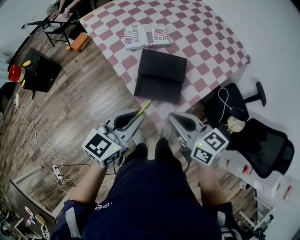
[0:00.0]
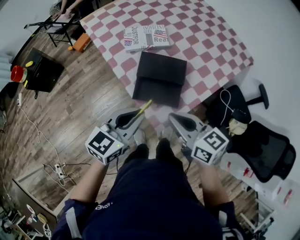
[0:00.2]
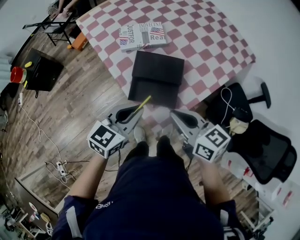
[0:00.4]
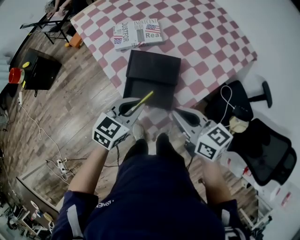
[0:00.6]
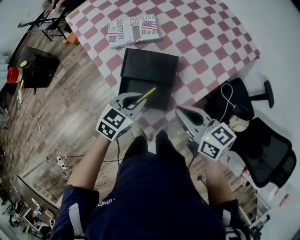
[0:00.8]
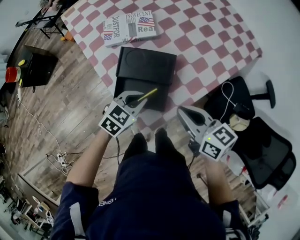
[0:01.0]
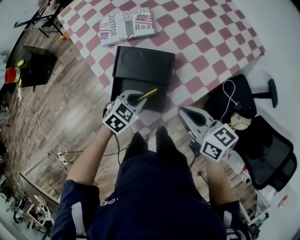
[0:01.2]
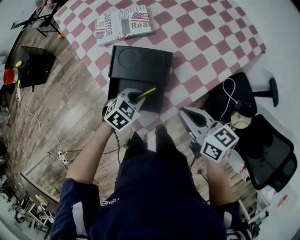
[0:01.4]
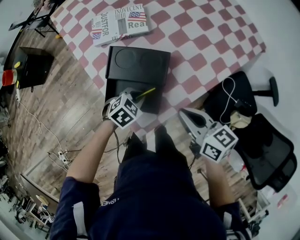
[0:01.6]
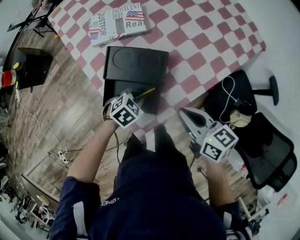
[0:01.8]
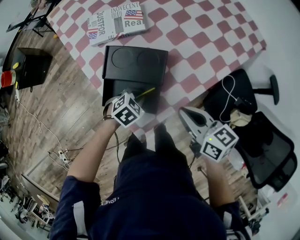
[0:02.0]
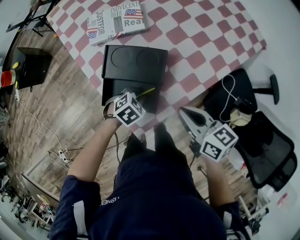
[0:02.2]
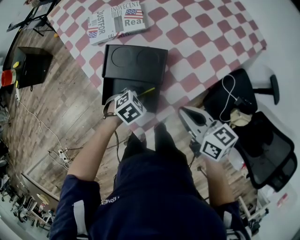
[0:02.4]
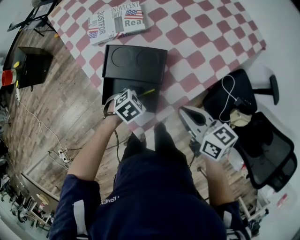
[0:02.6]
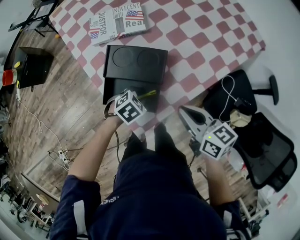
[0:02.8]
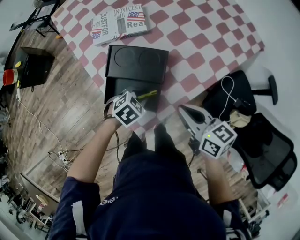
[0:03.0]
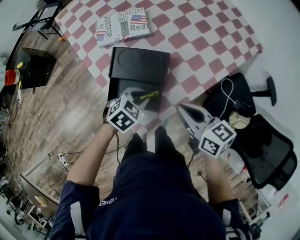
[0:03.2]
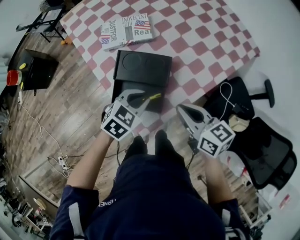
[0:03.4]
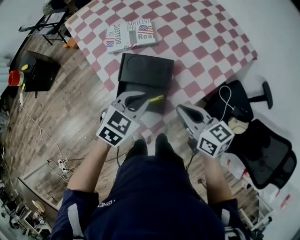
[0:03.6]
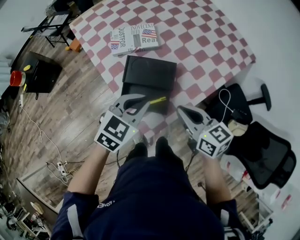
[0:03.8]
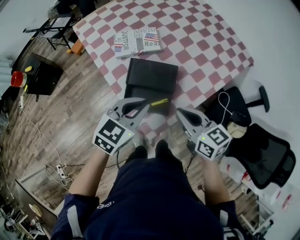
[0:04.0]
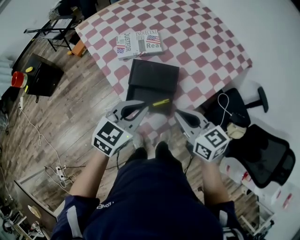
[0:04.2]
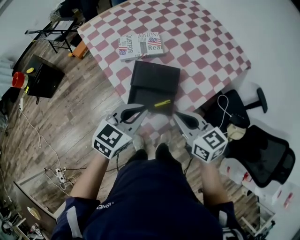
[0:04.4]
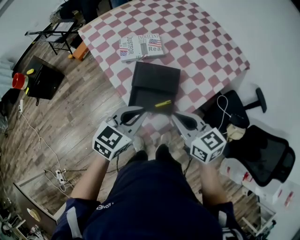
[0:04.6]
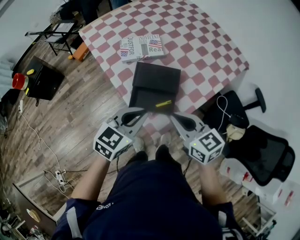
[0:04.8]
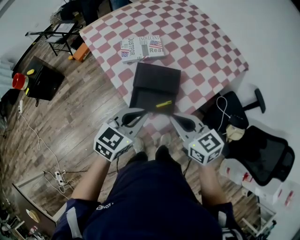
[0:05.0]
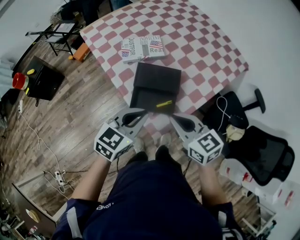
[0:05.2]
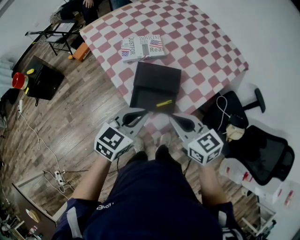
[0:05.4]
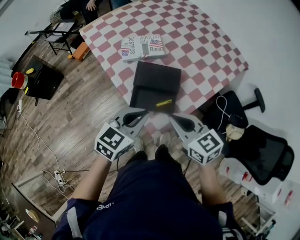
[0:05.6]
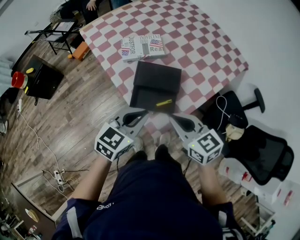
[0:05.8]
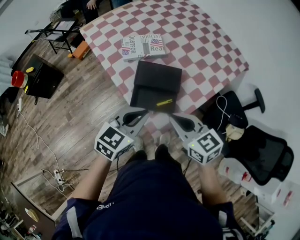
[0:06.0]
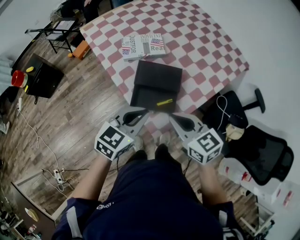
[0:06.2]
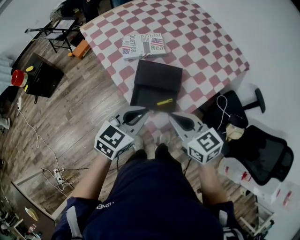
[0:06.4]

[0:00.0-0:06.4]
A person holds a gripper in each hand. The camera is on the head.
0:00.0 to 0:01.6: The right gripper travels to the right, downward and forward by roughly 20 cm. Meanwhile the left gripper heads downward, to the right and forward, covering approximately 30 cm, and tilts its fingers some 50 degrees downward.
0:01.6 to 0:03.2: The left gripper shifts some 5 cm upward.
0:03.2 to 0:04.8: The right gripper travels to the left, upward and backward by about 15 cm, and swivels approximately 20 degrees. The left gripper shifts some 20 cm upward and to the left, and angles its fingers upward, by some 30 degrees.
0:04.8 to 0:06.4: The grippers move only a little.

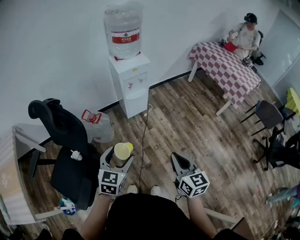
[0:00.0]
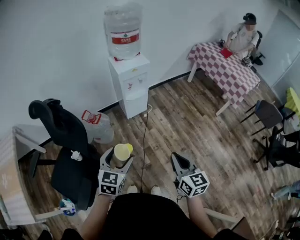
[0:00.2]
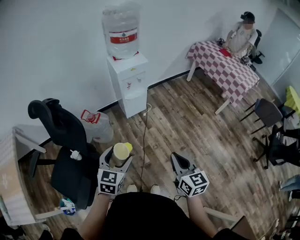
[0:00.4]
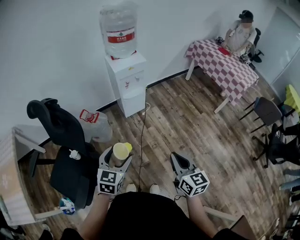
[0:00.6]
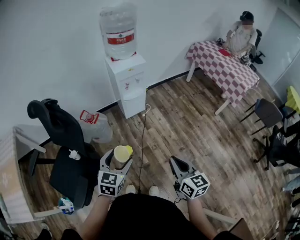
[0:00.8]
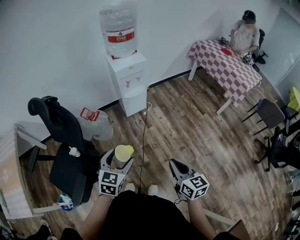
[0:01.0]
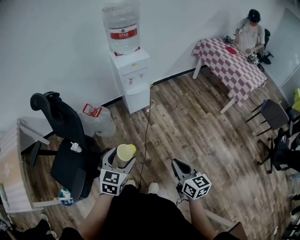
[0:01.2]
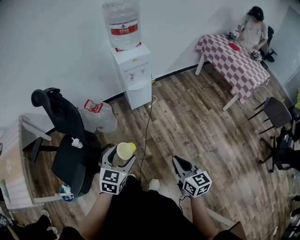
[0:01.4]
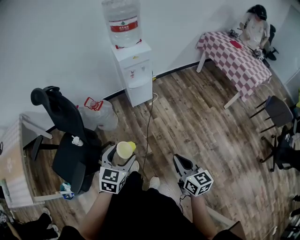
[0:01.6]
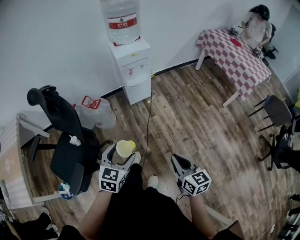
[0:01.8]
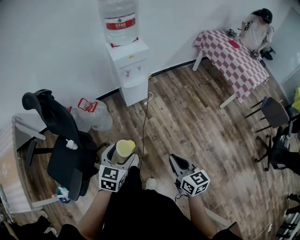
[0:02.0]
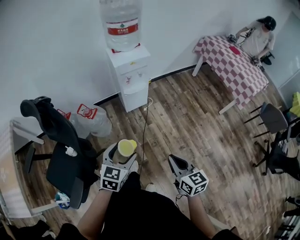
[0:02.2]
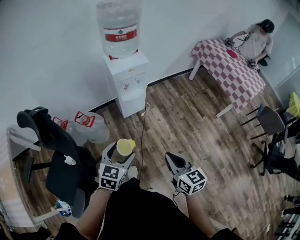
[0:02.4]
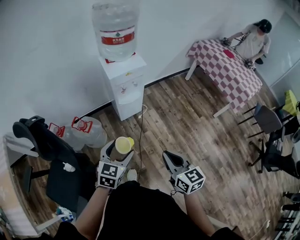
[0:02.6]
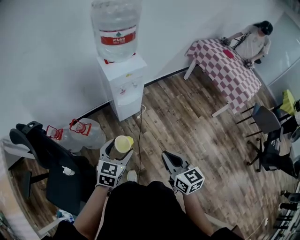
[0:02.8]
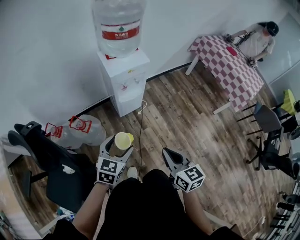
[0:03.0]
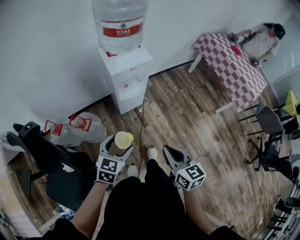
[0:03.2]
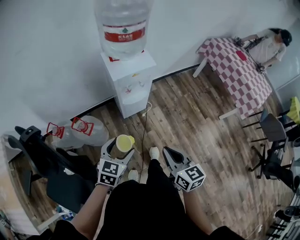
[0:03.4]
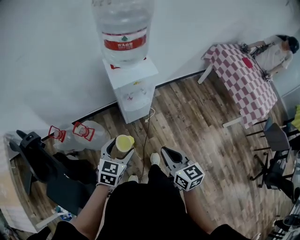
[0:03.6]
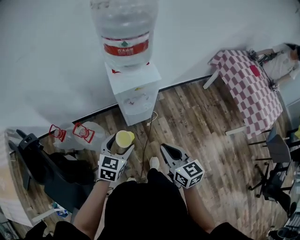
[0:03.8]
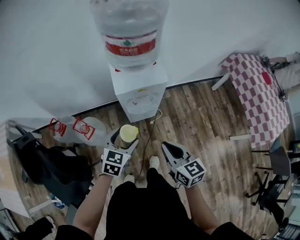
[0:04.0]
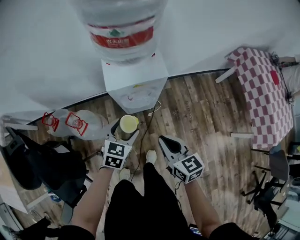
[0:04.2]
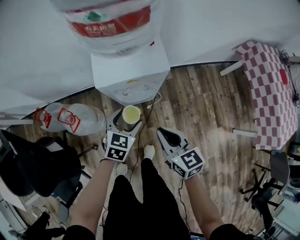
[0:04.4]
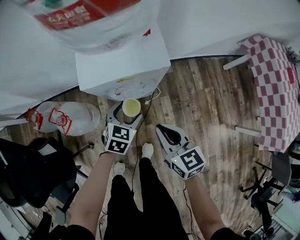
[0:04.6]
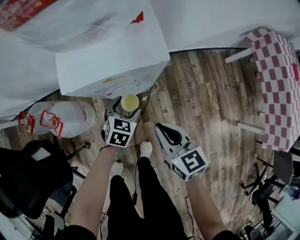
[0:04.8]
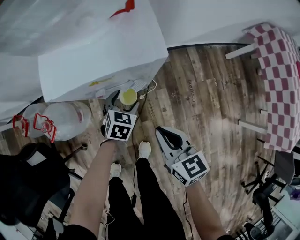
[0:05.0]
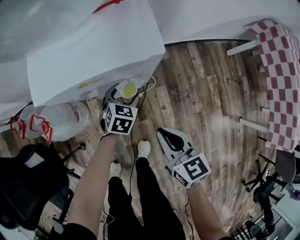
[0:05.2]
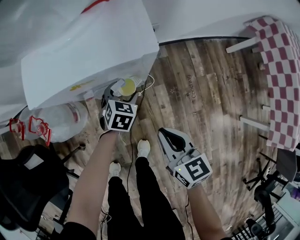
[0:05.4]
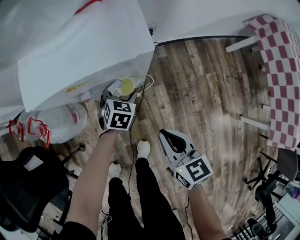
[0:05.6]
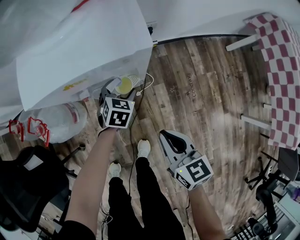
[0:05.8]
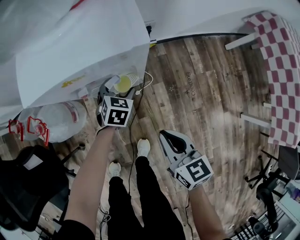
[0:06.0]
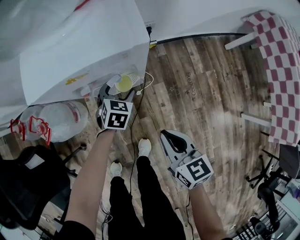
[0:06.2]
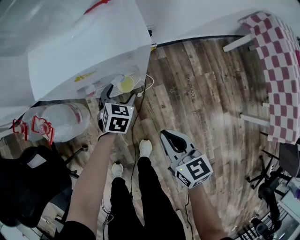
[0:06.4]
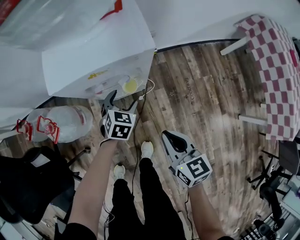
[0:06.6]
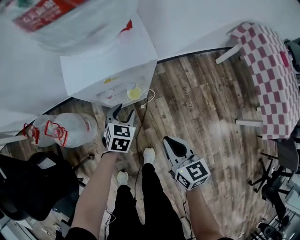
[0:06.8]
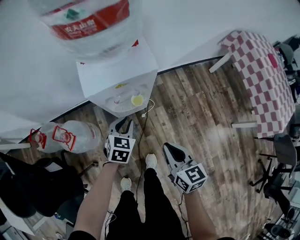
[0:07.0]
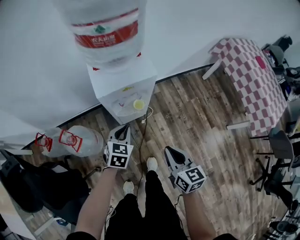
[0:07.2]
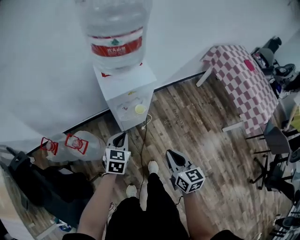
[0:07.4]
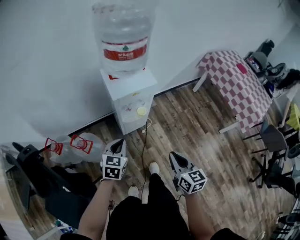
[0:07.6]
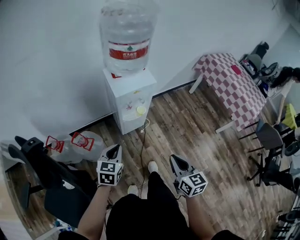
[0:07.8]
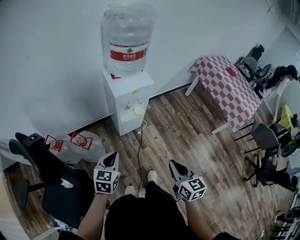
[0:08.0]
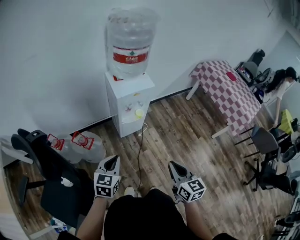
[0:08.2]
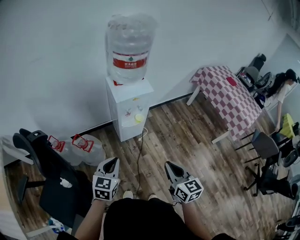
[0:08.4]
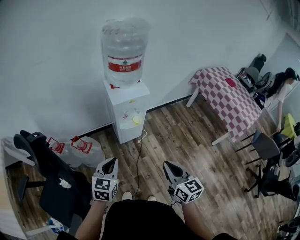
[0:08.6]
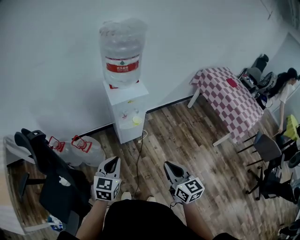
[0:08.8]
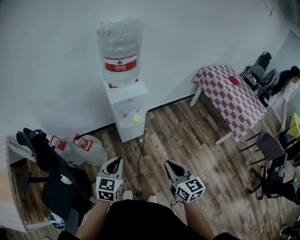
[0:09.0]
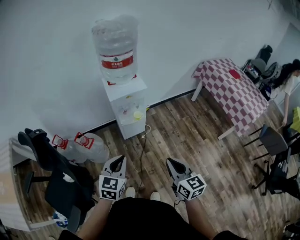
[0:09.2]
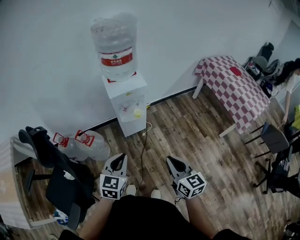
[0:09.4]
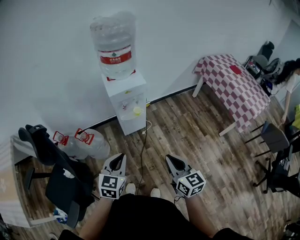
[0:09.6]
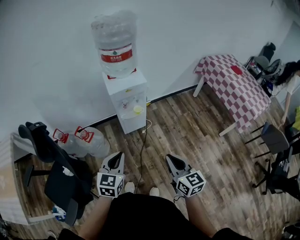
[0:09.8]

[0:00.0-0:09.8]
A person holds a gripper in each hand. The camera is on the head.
0:00.0 to 0:01.4: The right gripper shifts some 10 cm to the right, backward and downward, while the left gripper is displaced to the right and backward by roughly 10 cm.
0:01.4 to 0:02.8: Both grippers travel together forward, approximately 25 cm.
0:02.8 to 0:04.2: The two grippers go some 30 cm forward. The right gripper changes its angle by about 20 degrees.
0:04.2 to 0:05.6: The right gripper is displaced downward by approximately 25 cm. Meanwhile the left gripper moves downward and forward, about 35 cm.
0:05.6 to 0:07.0: The two grippers go about 20 cm upward and backward. The left gripper closes.
0:07.0 to 0:08.4: The left gripper moves backward, upward and to the left, approximately 40 cm, while the right gripper goes about 30 cm backward and upward.
0:08.4 to 0:09.8: Both grippers move to the right, approximately 10 cm.

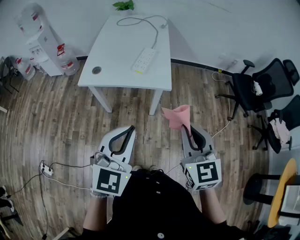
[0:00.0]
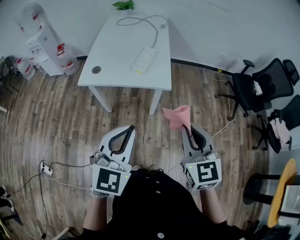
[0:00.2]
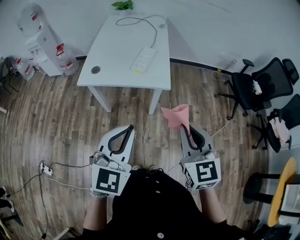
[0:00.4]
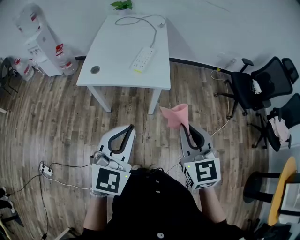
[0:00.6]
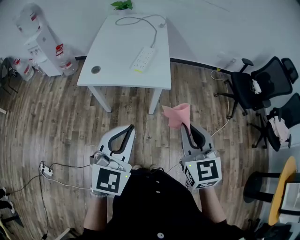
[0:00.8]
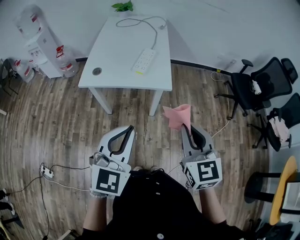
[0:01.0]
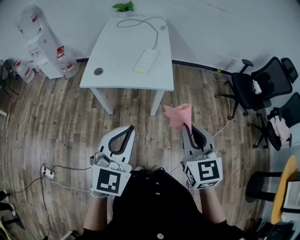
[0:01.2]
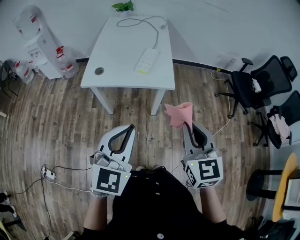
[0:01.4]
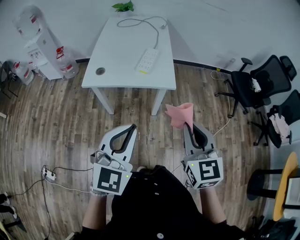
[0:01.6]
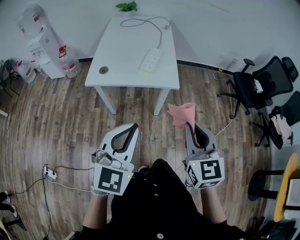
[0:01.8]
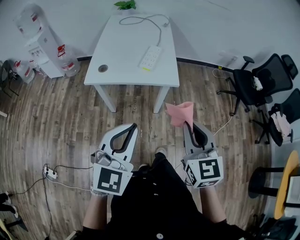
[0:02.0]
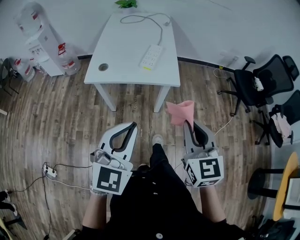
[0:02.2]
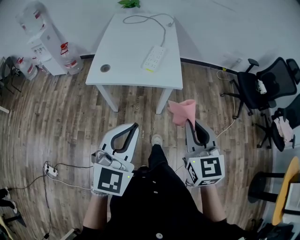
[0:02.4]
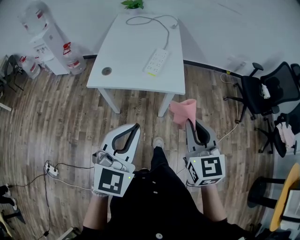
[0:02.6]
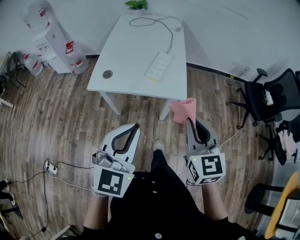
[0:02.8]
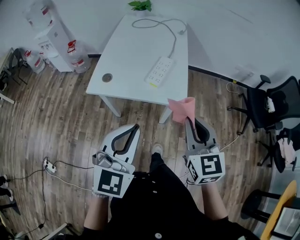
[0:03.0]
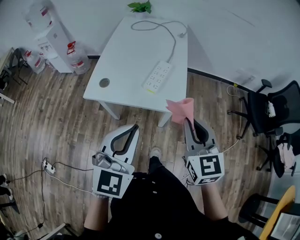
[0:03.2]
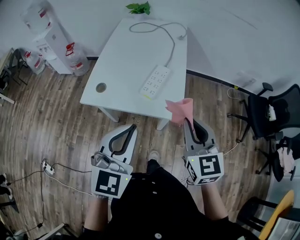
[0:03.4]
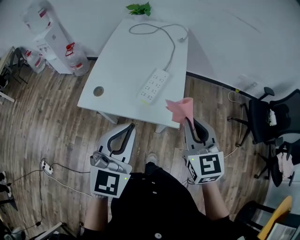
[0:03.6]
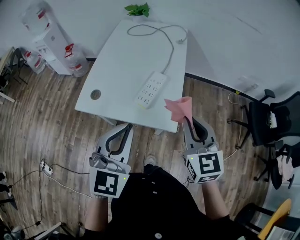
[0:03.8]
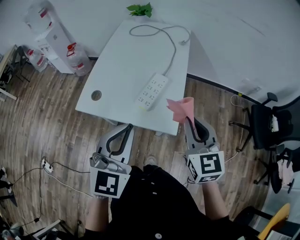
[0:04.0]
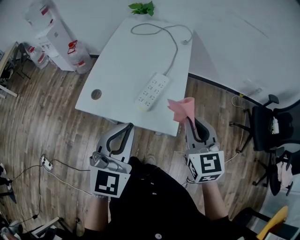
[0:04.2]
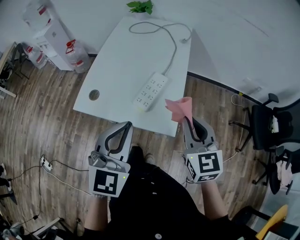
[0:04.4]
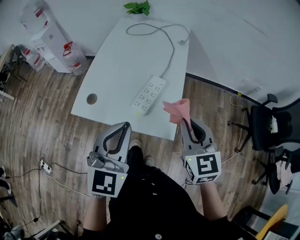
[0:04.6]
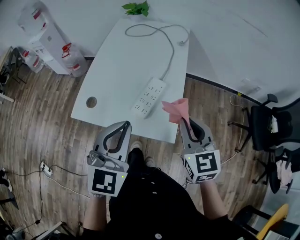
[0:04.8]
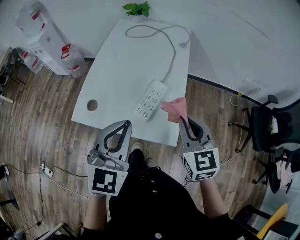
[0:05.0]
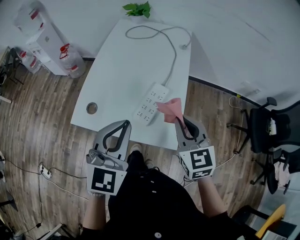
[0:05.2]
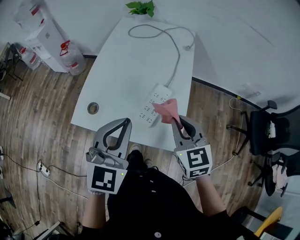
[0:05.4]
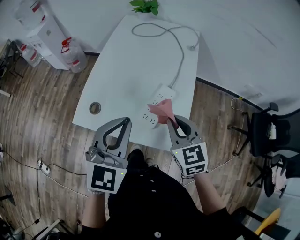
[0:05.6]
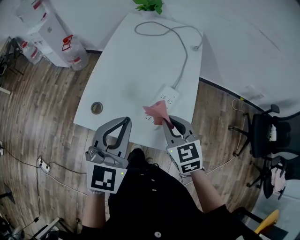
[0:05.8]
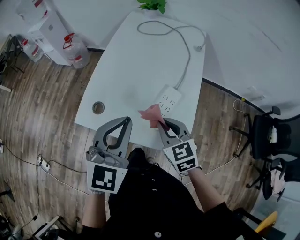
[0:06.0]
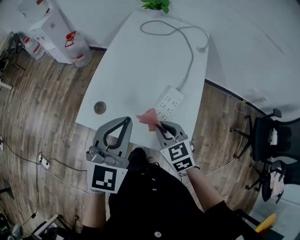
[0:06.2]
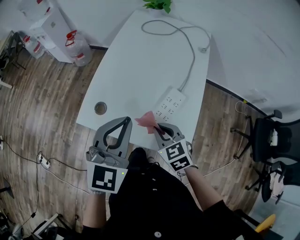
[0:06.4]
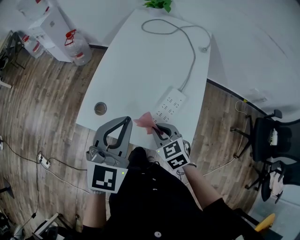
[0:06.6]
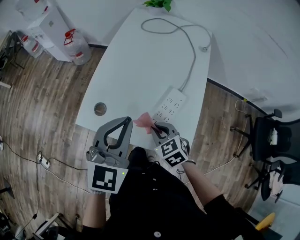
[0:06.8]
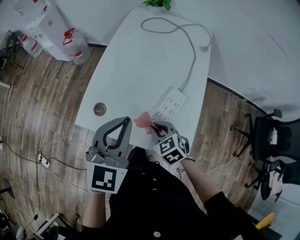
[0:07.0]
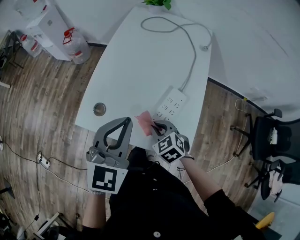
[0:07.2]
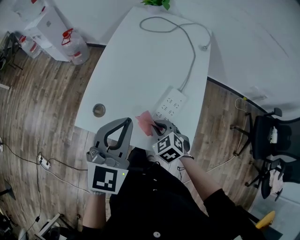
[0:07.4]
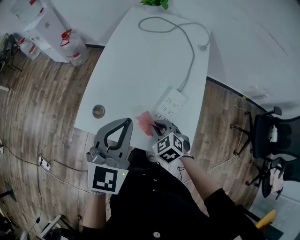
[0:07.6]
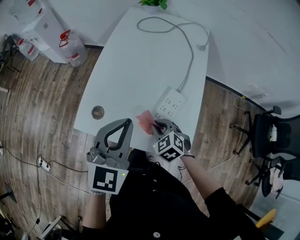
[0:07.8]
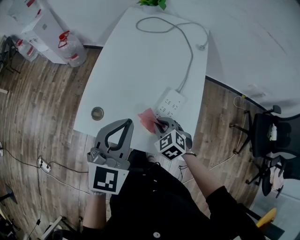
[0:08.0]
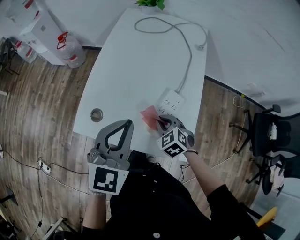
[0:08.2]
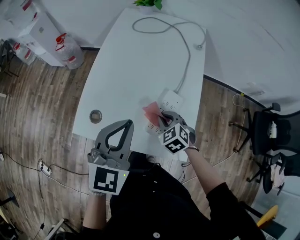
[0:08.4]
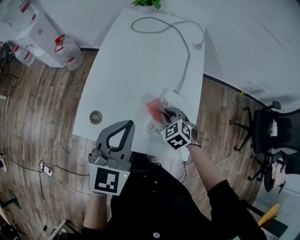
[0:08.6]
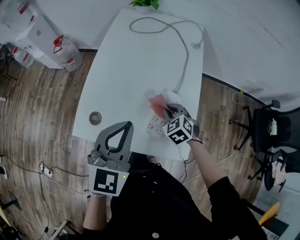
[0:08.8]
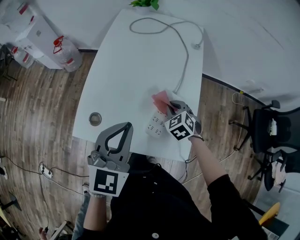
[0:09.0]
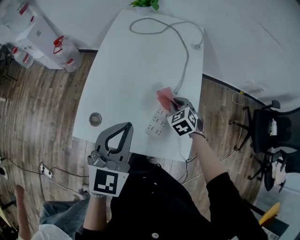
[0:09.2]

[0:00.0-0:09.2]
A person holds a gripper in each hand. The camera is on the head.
0:00.0 to 0:01.6: There are only small adjustments of the grippers.
0:01.6 to 0:03.0: Both grippers travel together forward, approximately 15 cm.
0:03.0 to 0:04.6: Both grippers move forward, approximately 20 cm.
0:04.6 to 0:06.2: The left gripper is displaced forward and to the left by some 15 cm. The right gripper moves to the left, downward and forward, approximately 25 cm, and changes its angle by some 30 degrees.
0:06.2 to 0:07.6: The right gripper shifts approximately 10 cm downward, and swivels approximately 20 degrees.
0:07.6 to 0:09.2: The right gripper is displaced forward and to the right by approximately 15 cm.
